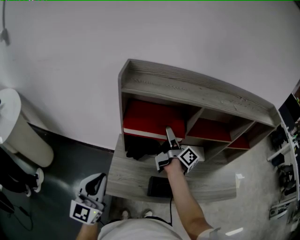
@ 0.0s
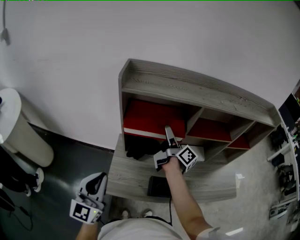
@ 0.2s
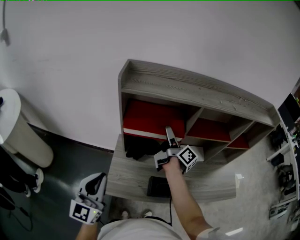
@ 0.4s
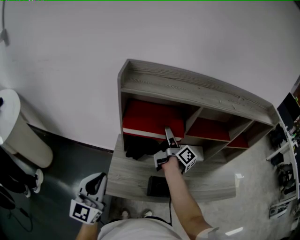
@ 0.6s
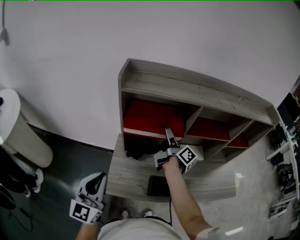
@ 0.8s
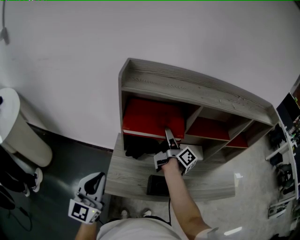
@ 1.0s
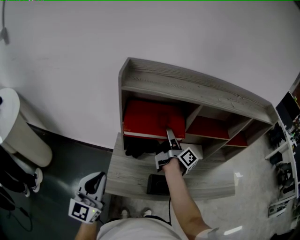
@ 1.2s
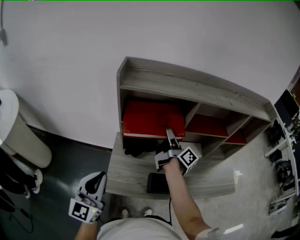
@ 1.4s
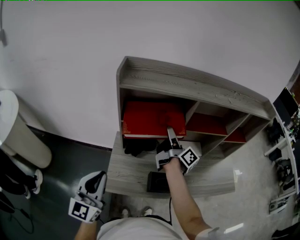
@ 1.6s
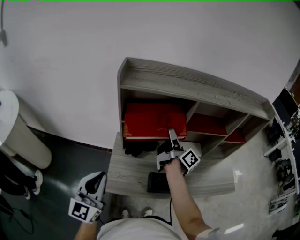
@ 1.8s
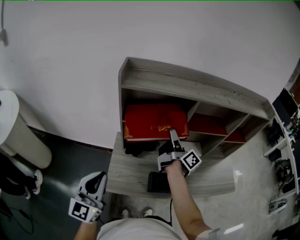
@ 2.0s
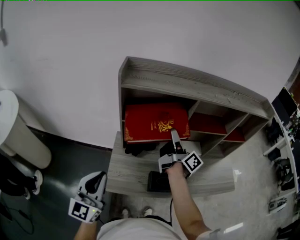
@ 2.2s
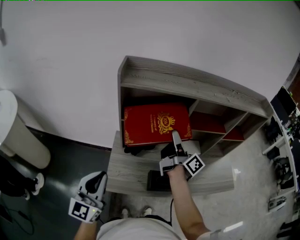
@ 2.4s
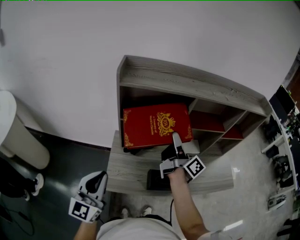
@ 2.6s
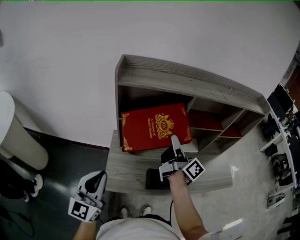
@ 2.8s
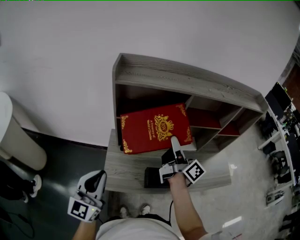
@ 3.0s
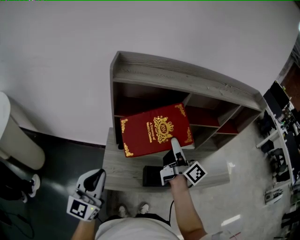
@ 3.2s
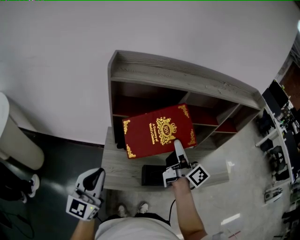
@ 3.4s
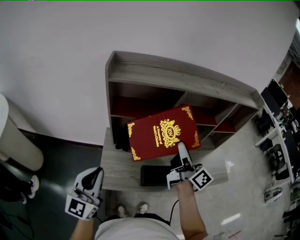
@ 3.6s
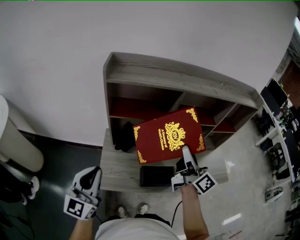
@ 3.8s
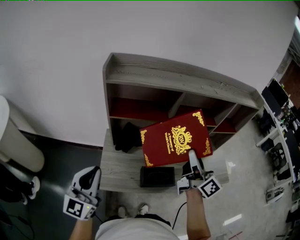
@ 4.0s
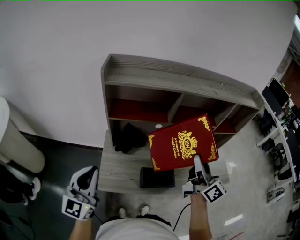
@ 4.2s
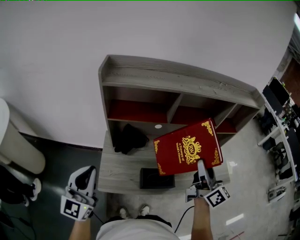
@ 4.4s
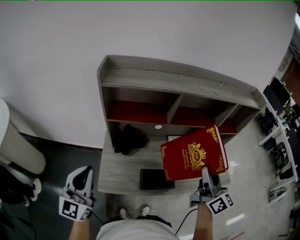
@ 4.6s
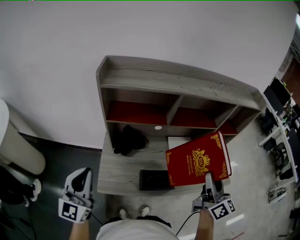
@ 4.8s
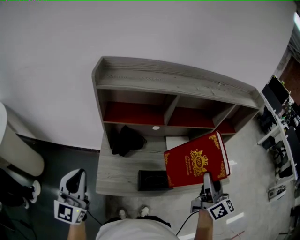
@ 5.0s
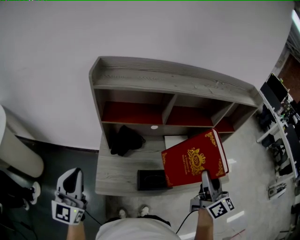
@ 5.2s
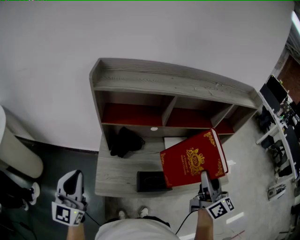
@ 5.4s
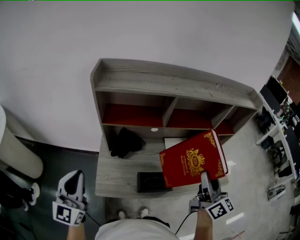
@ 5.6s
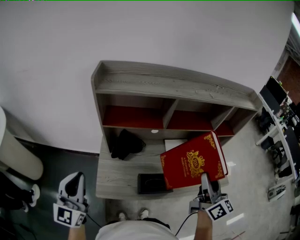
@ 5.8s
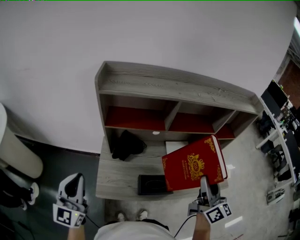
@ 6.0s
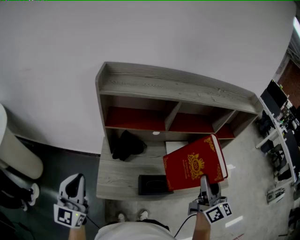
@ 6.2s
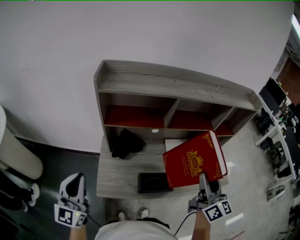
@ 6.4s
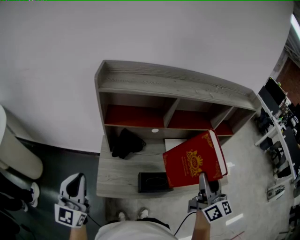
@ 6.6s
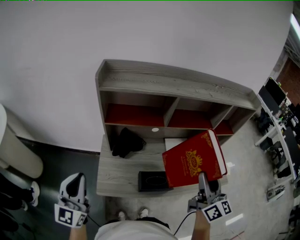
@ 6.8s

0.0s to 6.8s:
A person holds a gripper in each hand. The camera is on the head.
0.0s to 1.4s: The right gripper closes up.
1.4s to 2.8s: The right gripper shifts about 10 cm backward.
2.8s to 4.0s: The right gripper shifts roughly 15 cm to the right and backward, and changes its angle by some 20 degrees.
4.0s to 5.4s: The right gripper travels to the right and backward by about 10 cm.
5.4s to 6.8s: The grippers stay close to where they were, moving slightly.

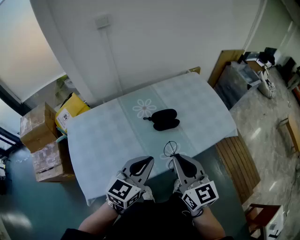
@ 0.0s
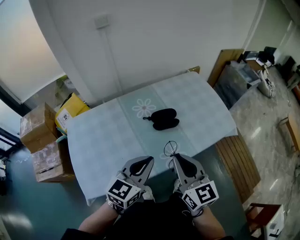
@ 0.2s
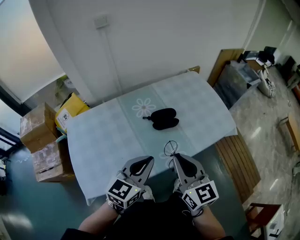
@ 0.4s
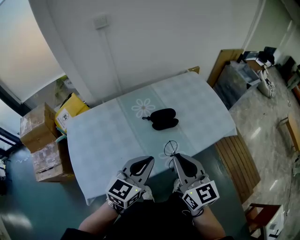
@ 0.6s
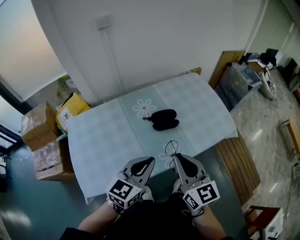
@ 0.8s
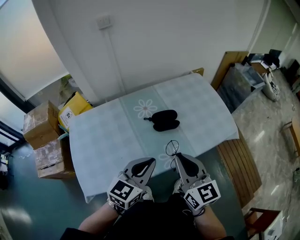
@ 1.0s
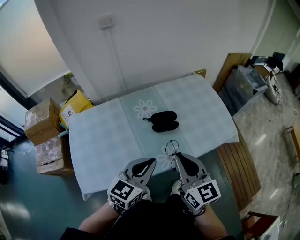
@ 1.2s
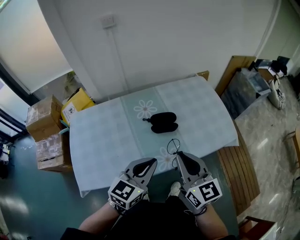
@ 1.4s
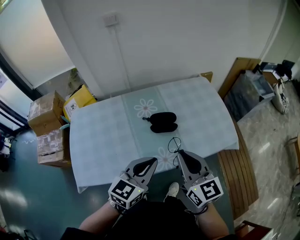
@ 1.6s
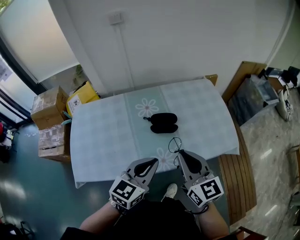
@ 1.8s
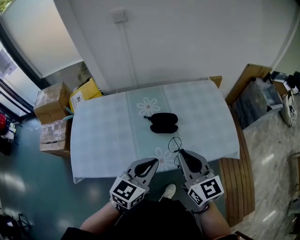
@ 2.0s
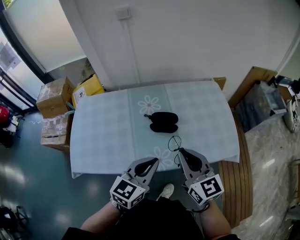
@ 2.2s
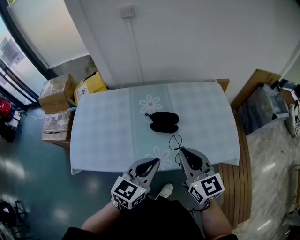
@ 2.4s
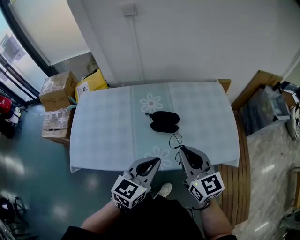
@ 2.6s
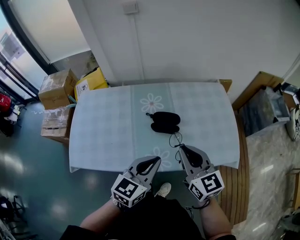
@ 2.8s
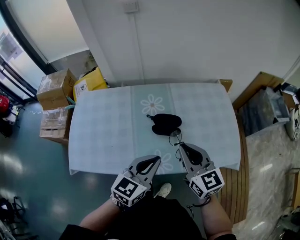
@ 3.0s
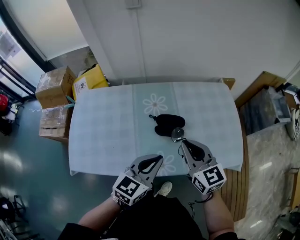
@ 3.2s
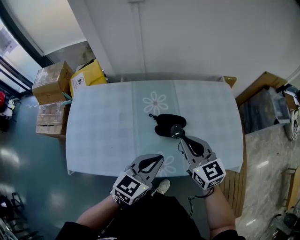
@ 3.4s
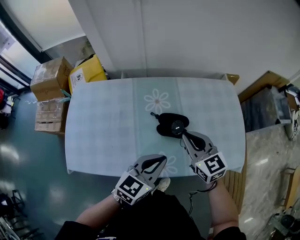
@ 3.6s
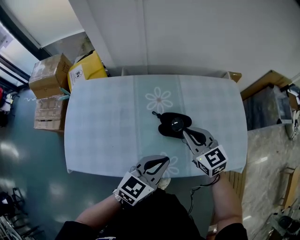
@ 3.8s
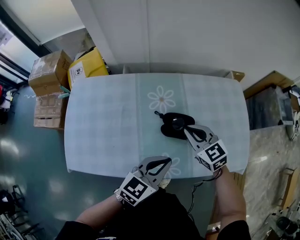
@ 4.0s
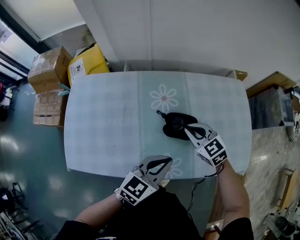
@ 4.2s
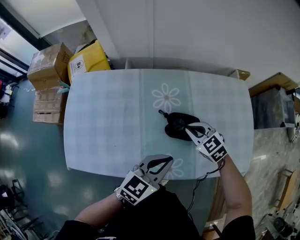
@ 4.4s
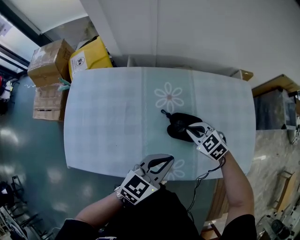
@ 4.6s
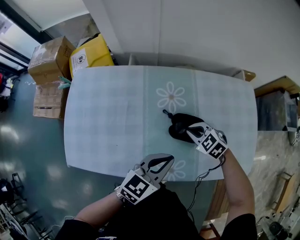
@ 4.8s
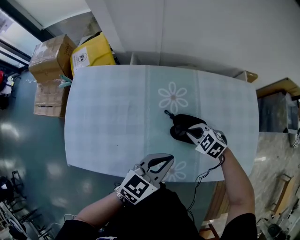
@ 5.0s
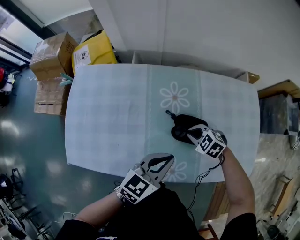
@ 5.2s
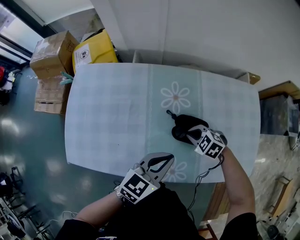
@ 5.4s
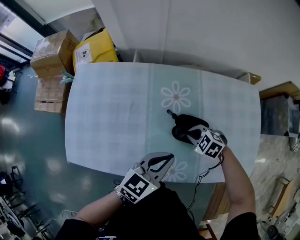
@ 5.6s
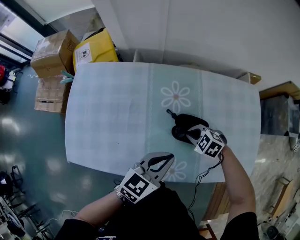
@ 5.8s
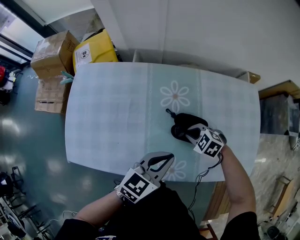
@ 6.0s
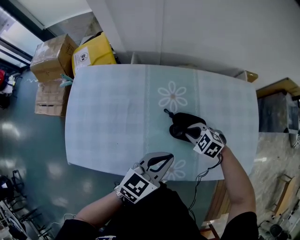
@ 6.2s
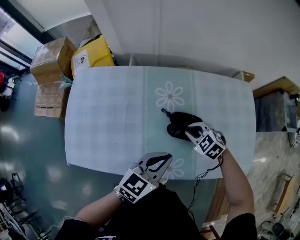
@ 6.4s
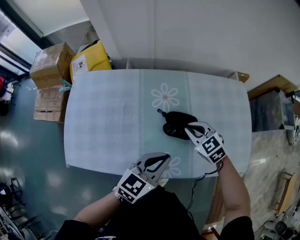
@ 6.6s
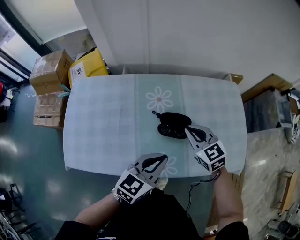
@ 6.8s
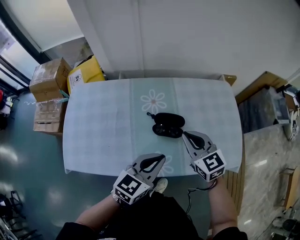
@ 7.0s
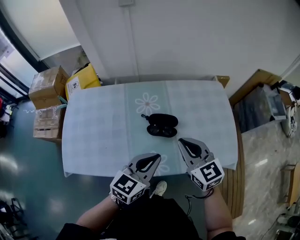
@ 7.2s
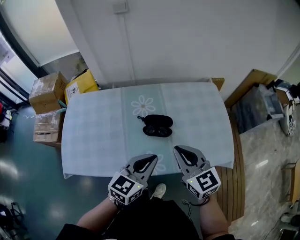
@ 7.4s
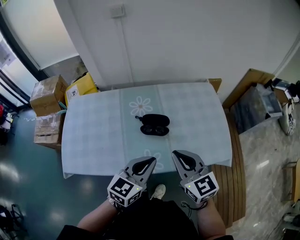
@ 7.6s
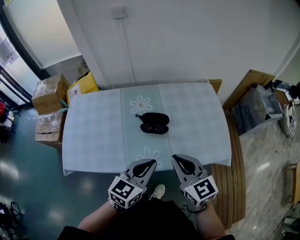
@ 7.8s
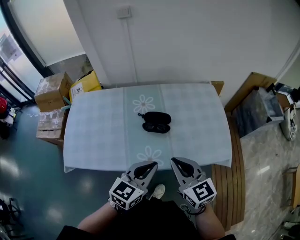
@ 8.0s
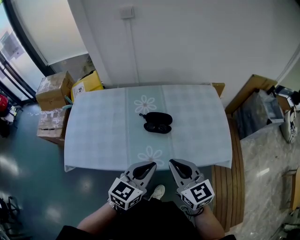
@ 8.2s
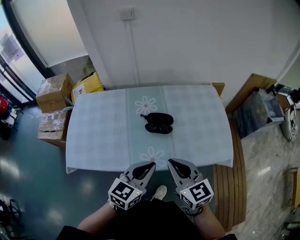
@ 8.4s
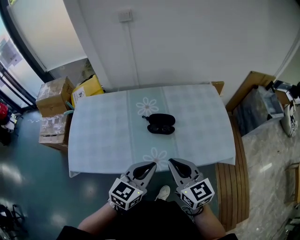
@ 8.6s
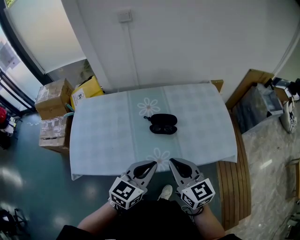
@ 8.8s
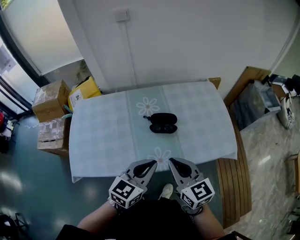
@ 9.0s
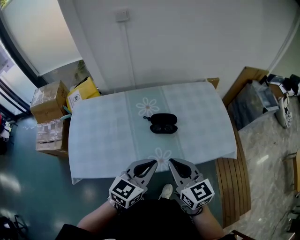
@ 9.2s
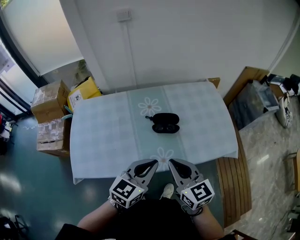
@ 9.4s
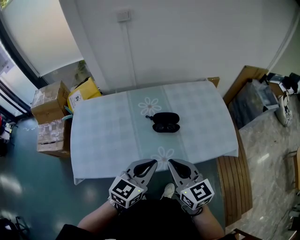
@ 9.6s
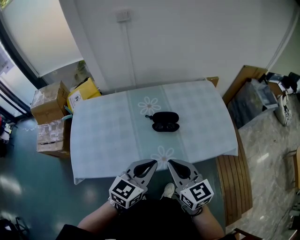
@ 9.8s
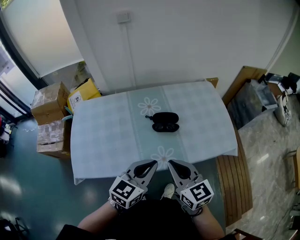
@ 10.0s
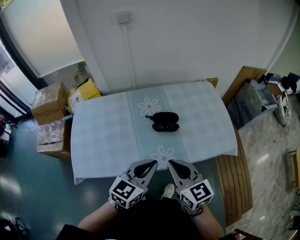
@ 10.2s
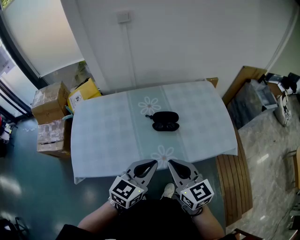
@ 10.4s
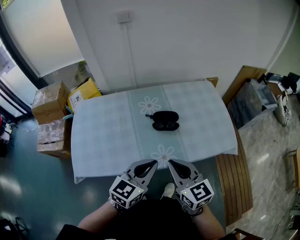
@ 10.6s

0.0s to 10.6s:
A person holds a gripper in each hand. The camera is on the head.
0.0s to 1.6s: Both grippers move to the right, about 10 cm.
1.6s to 3.0s: The left gripper shifts by approximately 5 cm. Meanwhile the right gripper heads forward, covering about 10 cm.
3.0s to 4.6s: The left gripper is displaced forward and downward by some 10 cm. The right gripper is displaced downward and forward by about 25 cm, and points its fingers some 40 degrees further downward.
4.6s to 6.0s: The right gripper travels downward by approximately 5 cm.
6.0s to 7.6s: The left gripper shifts by some 15 cm, while the right gripper shifts approximately 30 cm upward, and points its fingers some 50 degrees further upward.
7.6s to 9.0s: The left gripper goes roughly 5 cm to the left. The right gripper heads to the left and backward, covering about 10 cm.
9.0s to 10.6s: The grippers move only a little.

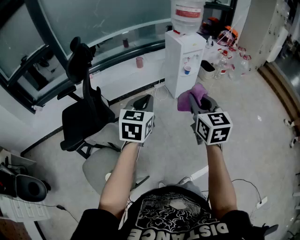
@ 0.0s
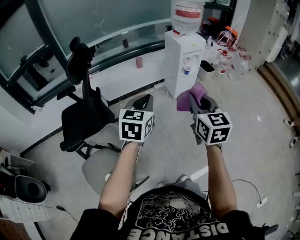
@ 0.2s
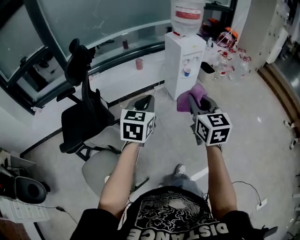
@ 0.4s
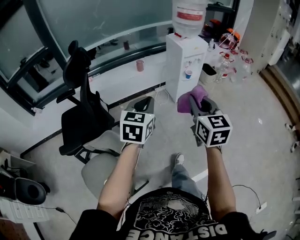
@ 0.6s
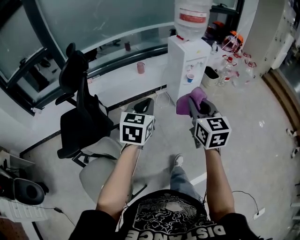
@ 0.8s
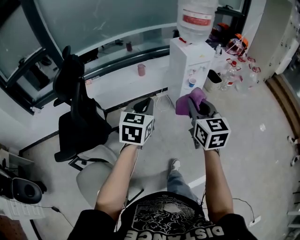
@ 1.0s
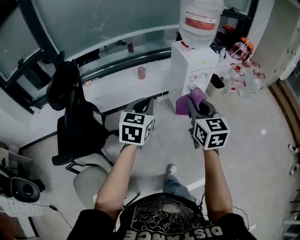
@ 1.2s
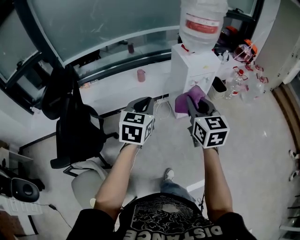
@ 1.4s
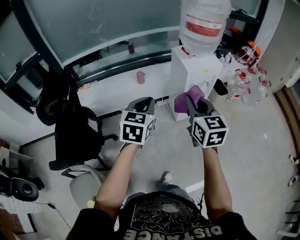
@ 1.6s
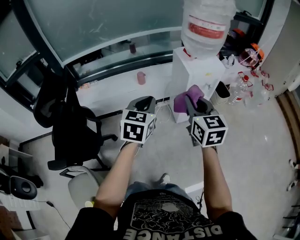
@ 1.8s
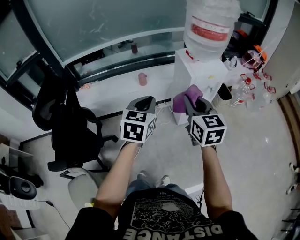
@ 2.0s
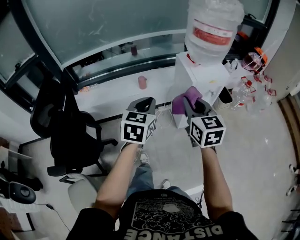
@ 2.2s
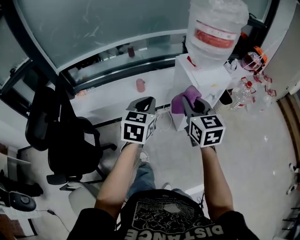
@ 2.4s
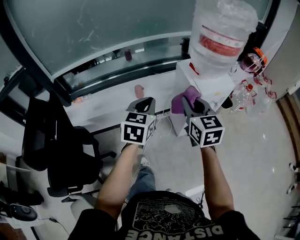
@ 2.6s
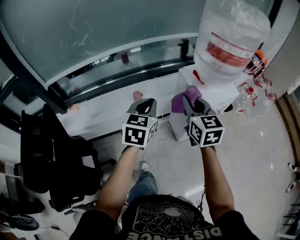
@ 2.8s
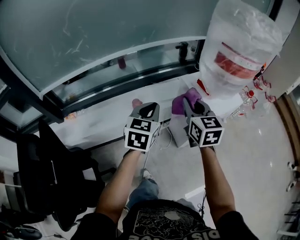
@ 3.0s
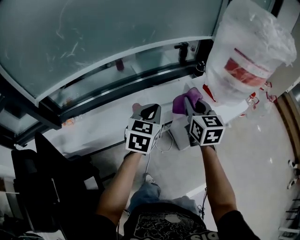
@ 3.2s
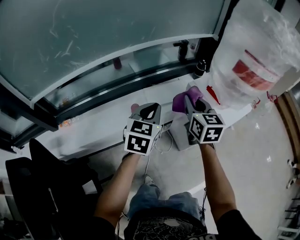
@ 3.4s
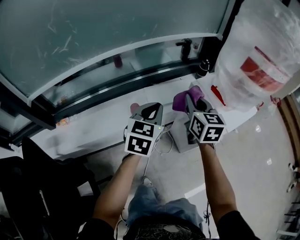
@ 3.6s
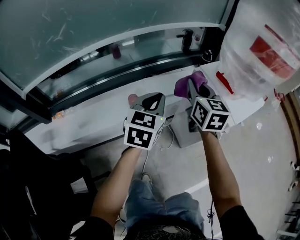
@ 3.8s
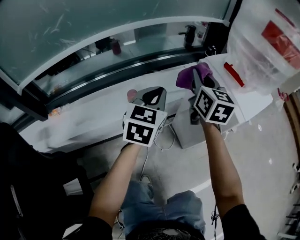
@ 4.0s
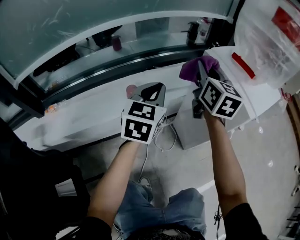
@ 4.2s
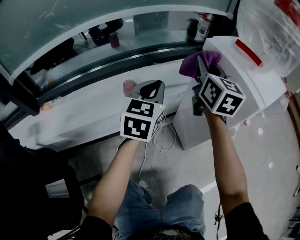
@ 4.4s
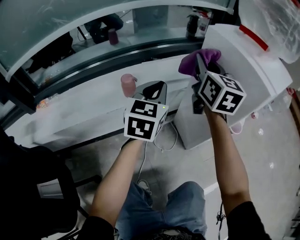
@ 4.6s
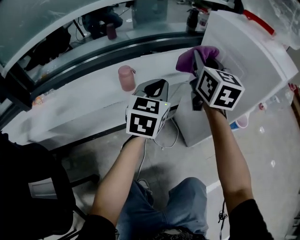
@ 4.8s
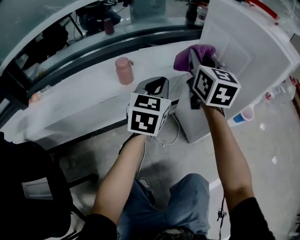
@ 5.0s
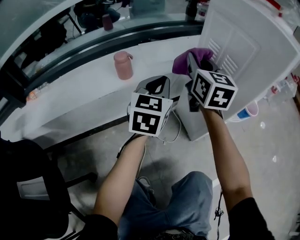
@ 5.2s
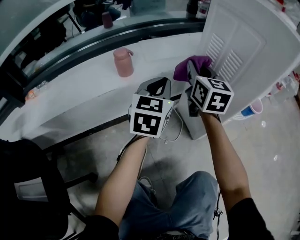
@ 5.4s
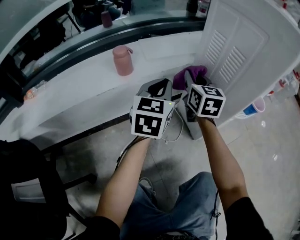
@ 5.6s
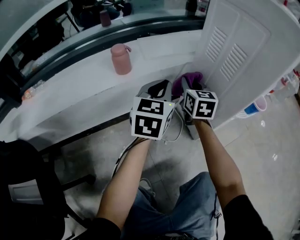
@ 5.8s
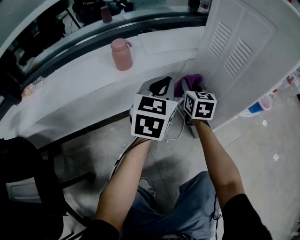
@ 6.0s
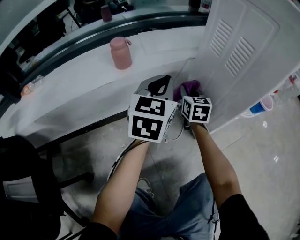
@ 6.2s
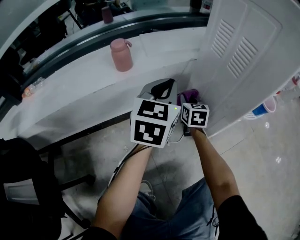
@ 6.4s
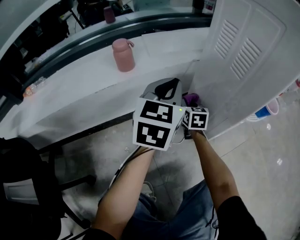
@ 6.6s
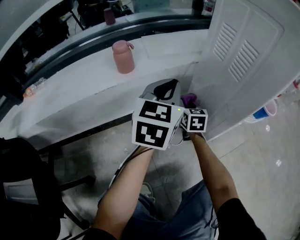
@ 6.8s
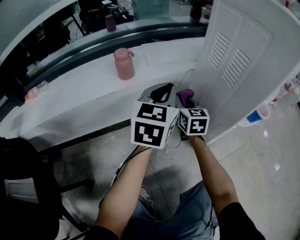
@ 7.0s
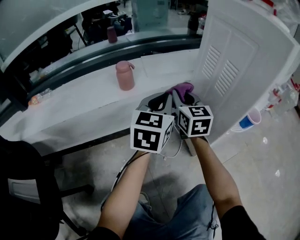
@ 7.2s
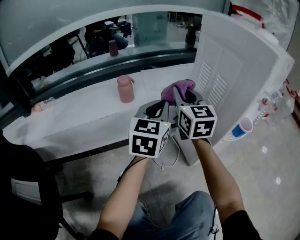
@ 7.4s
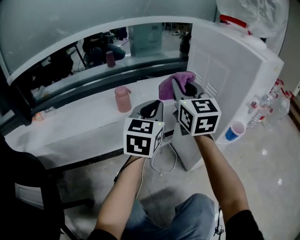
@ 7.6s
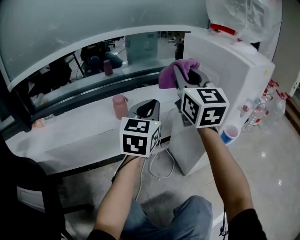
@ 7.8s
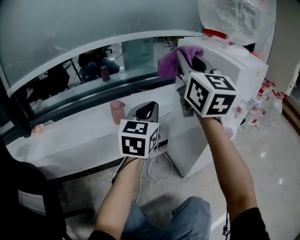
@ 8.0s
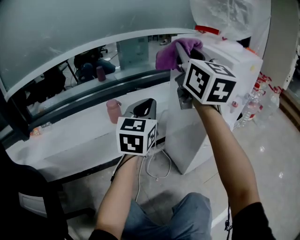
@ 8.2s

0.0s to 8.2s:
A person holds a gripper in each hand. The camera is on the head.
0.0s to 1.6s: Both grippers travel together forward, approximately 35 cm.
1.6s to 3.2s: The grippers both shift forward by some 40 cm.
3.2s to 5.0s: The grippers both shift downward by roughly 30 cm.
5.0s to 6.6s: The left gripper travels downward by about 5 cm. The right gripper moves downward, about 40 cm, and changes its angle by some 30 degrees.
6.6s to 8.2s: The left gripper shifts roughly 15 cm upward, while the right gripper moves upward, about 60 cm, and angles its fingers upward, by approximately 50 degrees.
